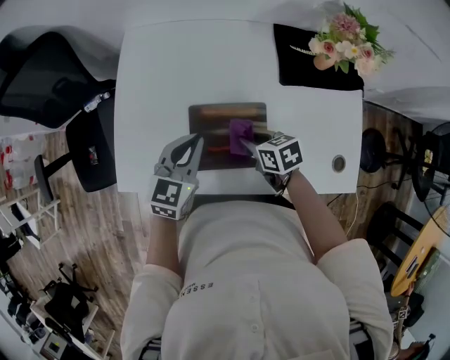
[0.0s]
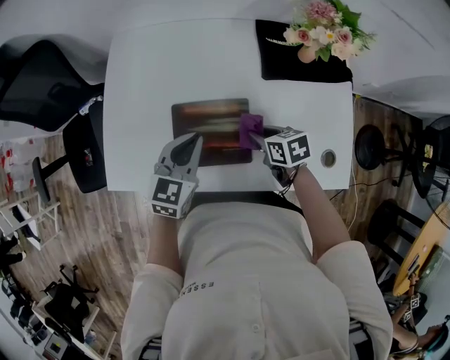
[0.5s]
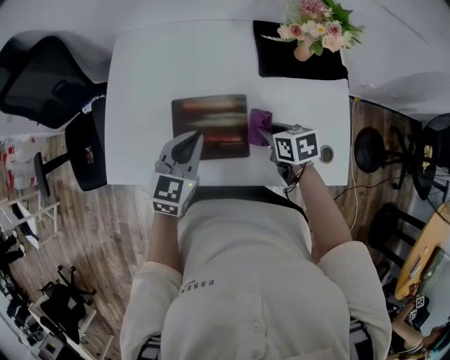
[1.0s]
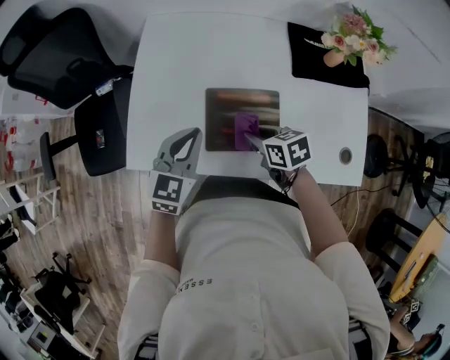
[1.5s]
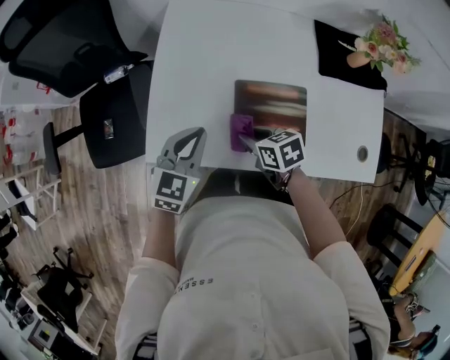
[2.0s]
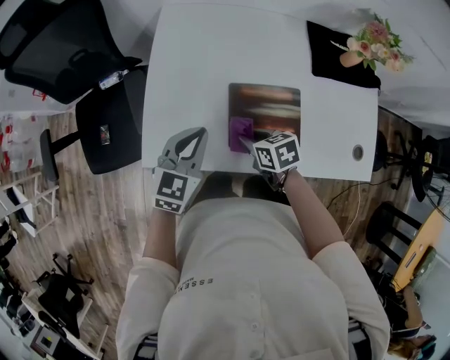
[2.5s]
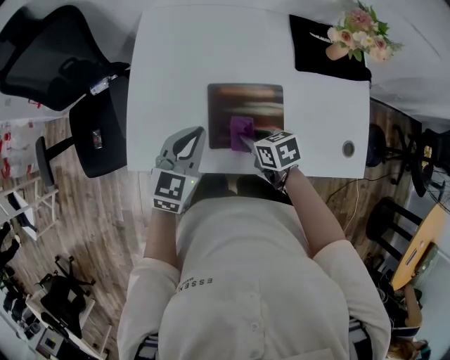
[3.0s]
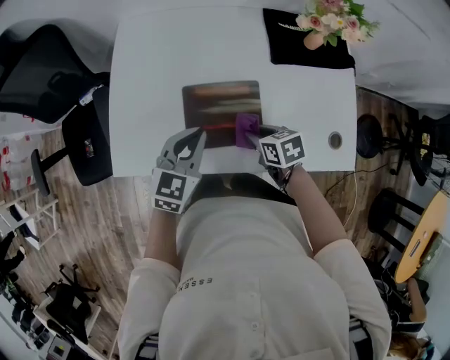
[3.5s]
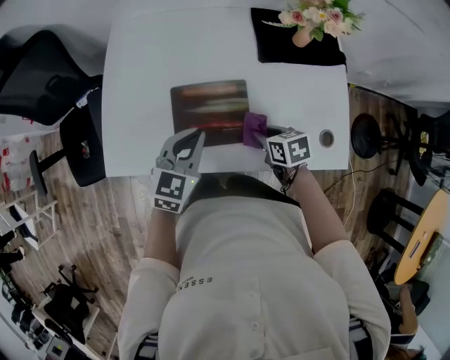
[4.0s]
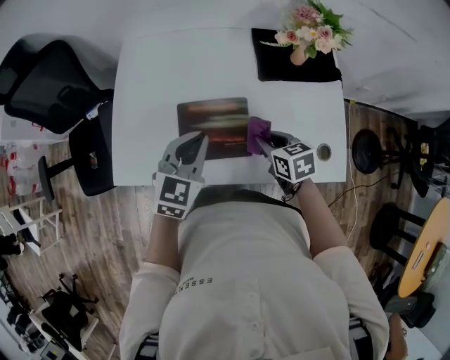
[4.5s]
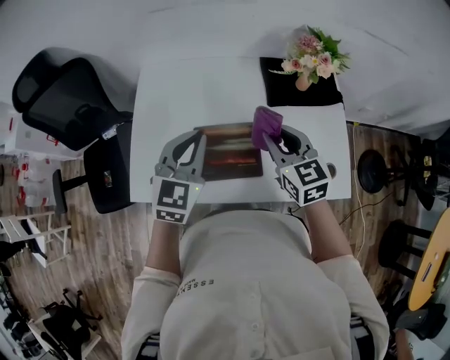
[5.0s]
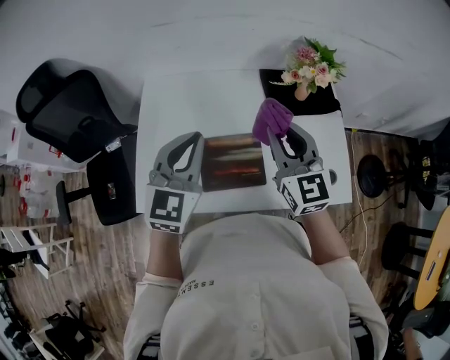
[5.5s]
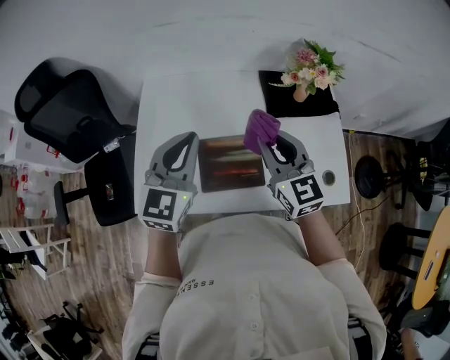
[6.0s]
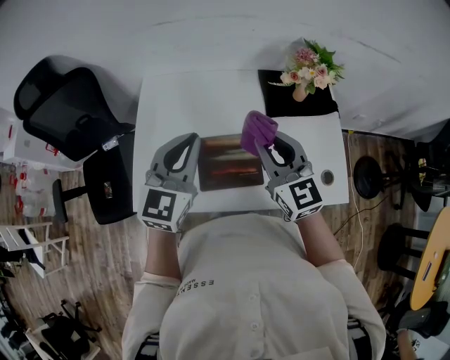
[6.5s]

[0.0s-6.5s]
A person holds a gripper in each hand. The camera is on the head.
0.0s to 2.0s: The two grippers go about 15 cm to the left.
2.0s to 4.5s: Both grippers travel together to the right, roughly 20 cm.
4.5s to 6.5s: The left gripper is displaced upward and to the left by about 15 cm. The right gripper shifts some 25 cm upward, and points its fingers about 40 degrees further upward.

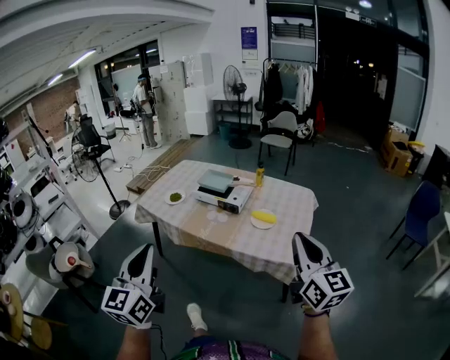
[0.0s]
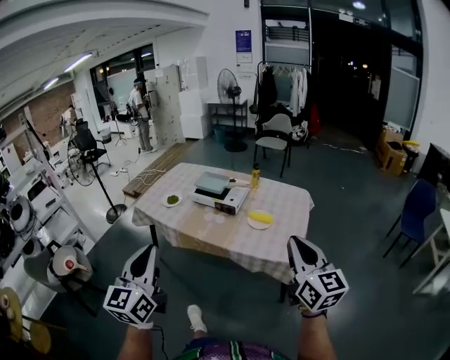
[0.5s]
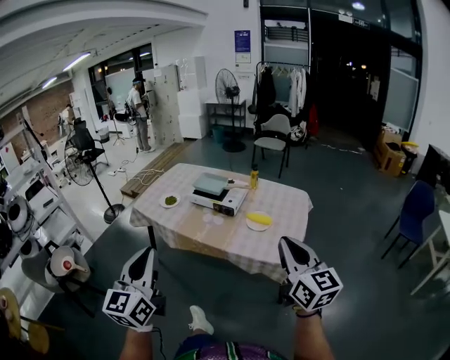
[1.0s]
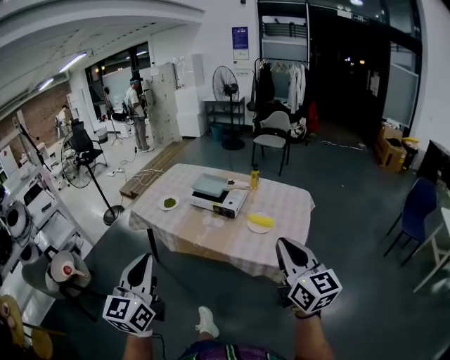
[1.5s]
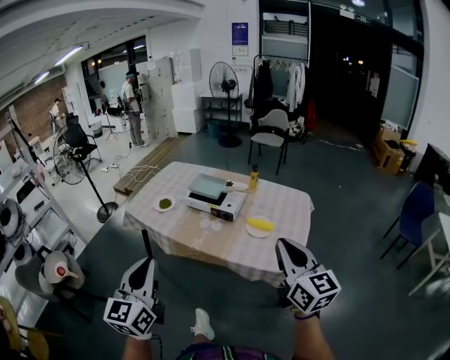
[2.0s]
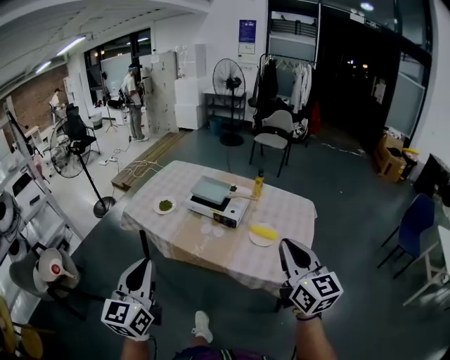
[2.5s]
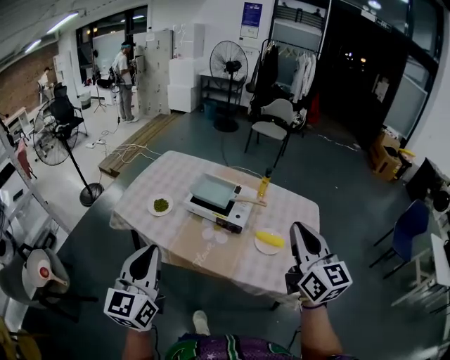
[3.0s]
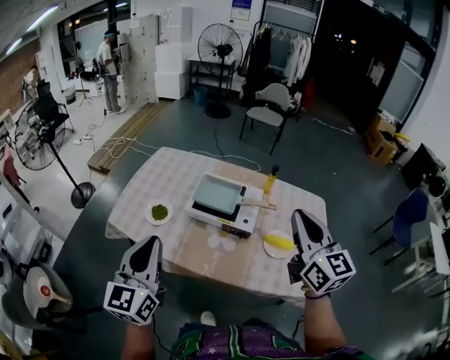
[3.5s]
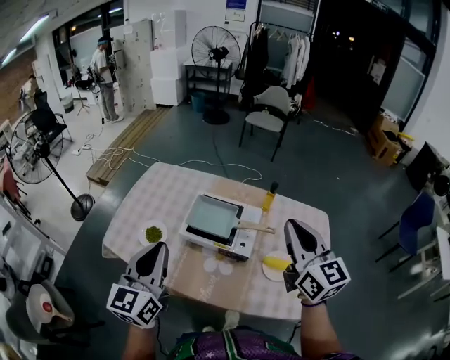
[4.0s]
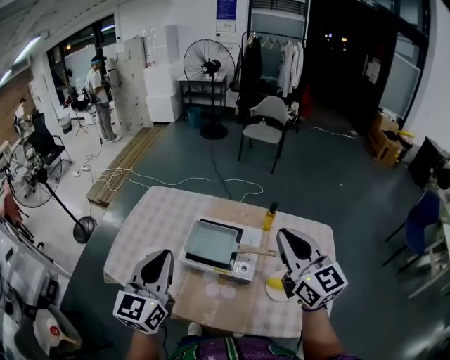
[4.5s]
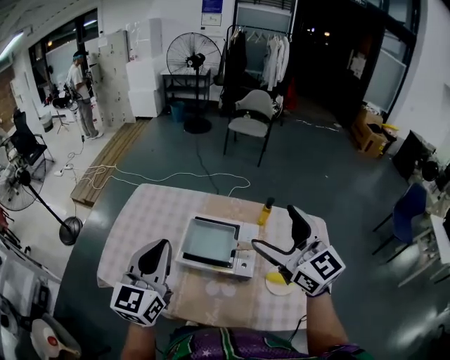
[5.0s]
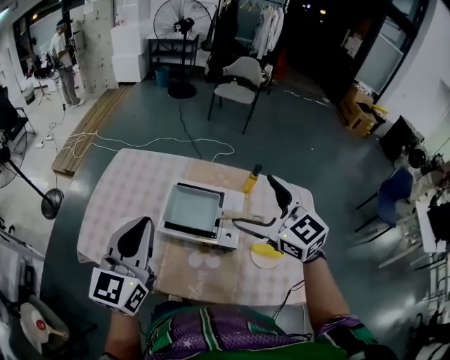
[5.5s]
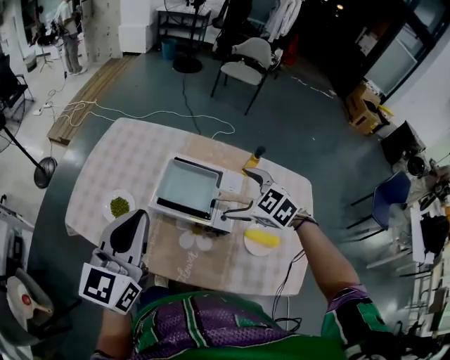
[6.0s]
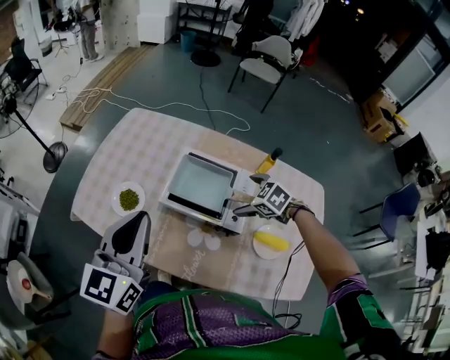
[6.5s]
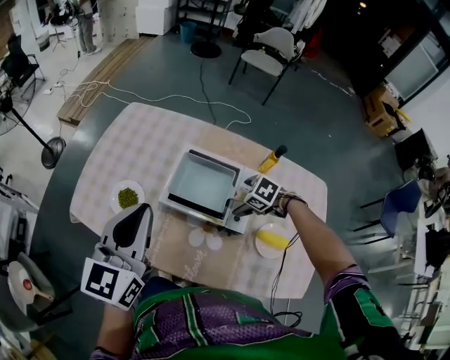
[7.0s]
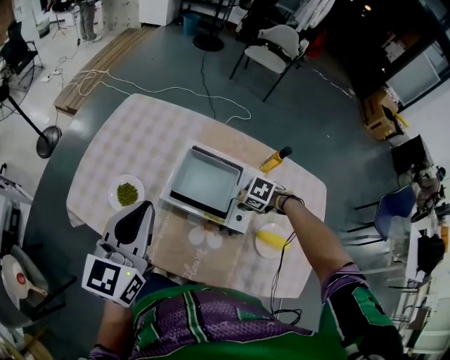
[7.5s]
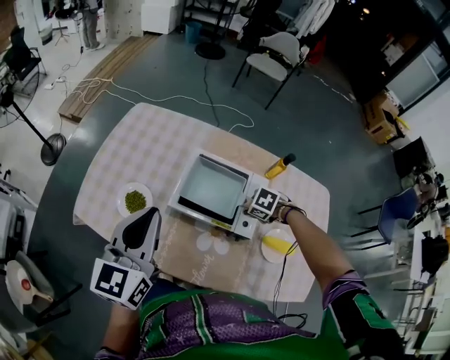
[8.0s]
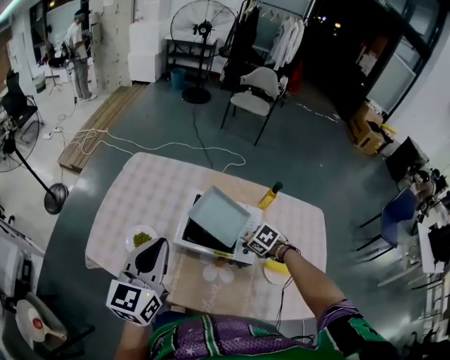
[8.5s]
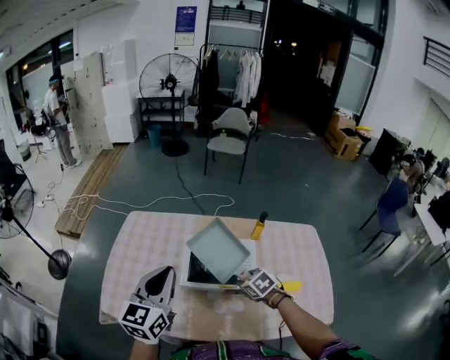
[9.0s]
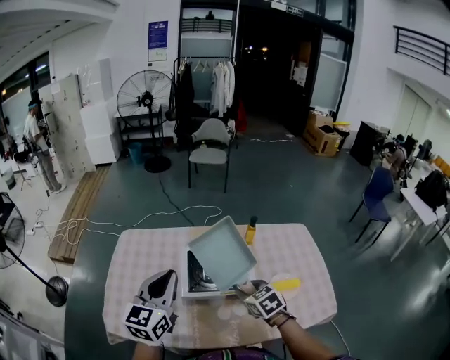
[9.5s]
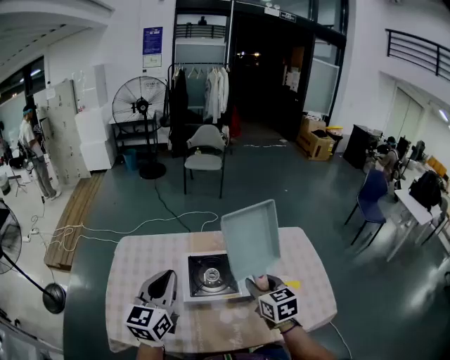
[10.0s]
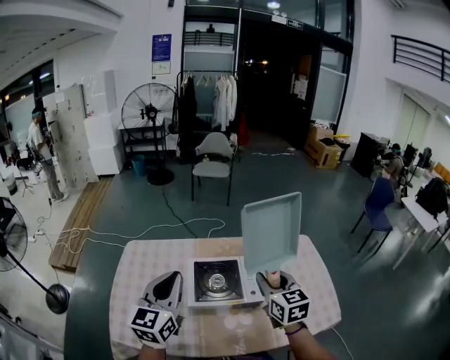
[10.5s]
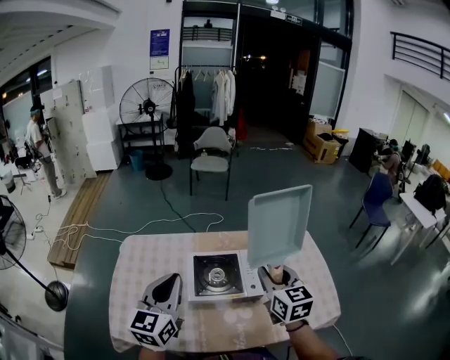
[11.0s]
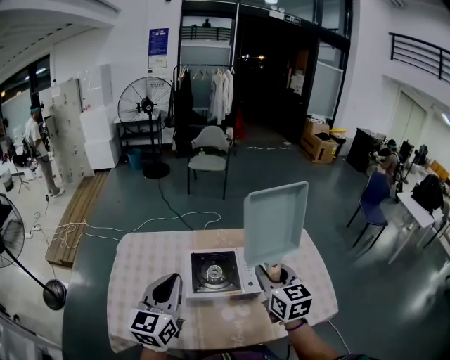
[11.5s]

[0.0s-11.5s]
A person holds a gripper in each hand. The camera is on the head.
0.0s to 2.0s: Both grippers travel together forward, roughly 10 cm.
2.0s to 4.0s: The two grippers travel together, forward, approximately 50 cm.
4.0s to 6.0s: The right gripper travels downward and forward by some 25 cm, angles its fingers downward, by roughly 50 degrees, and opens its fingers. The left gripper moves forward, about 10 cm.
6.0s to 7.5s: The left gripper ends up roughly 10 cm from where it was. The right gripper moves downward, some 20 cm, tilts its fingers about 30 degrees downward, and closes up.
7.5s to 9.5s: The left gripper moves upward, some 5 cm, and swivels some 20 degrees, while the right gripper travels upward by some 20 cm, and angles its fingers upward, by about 30 degrees.
9.5s to 11.5s: The right gripper shifts about 15 cm upward, and swivels some 40 degrees.

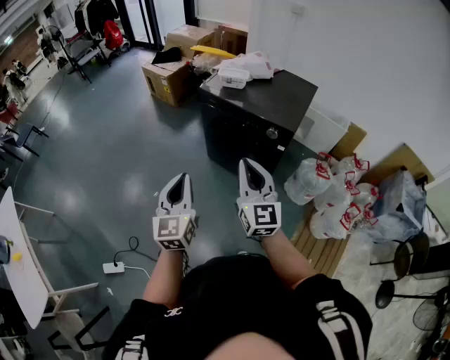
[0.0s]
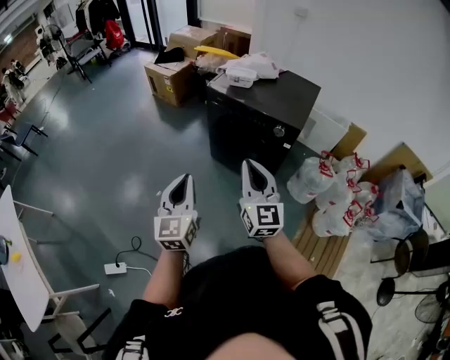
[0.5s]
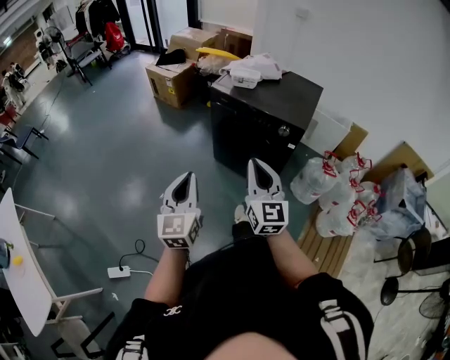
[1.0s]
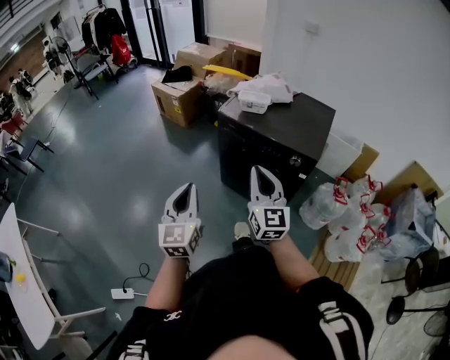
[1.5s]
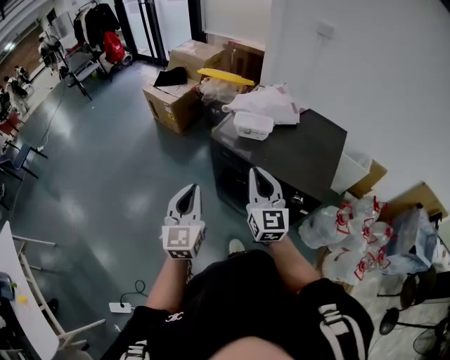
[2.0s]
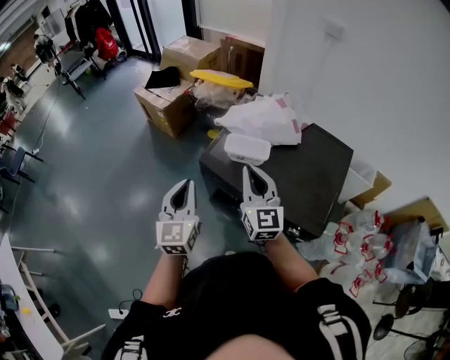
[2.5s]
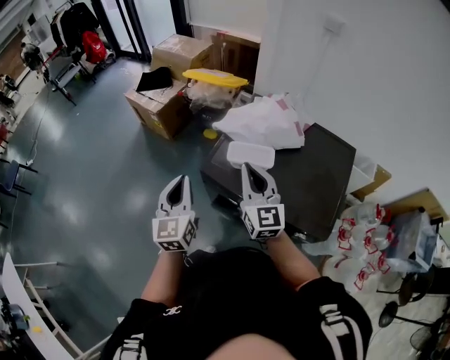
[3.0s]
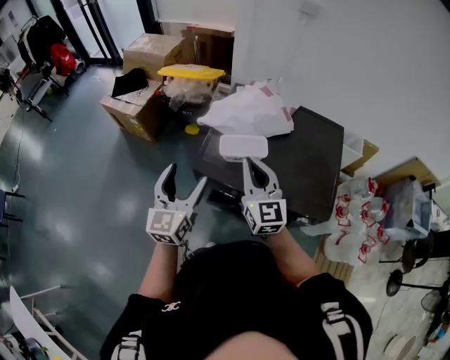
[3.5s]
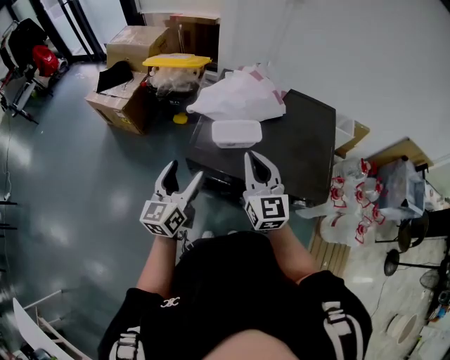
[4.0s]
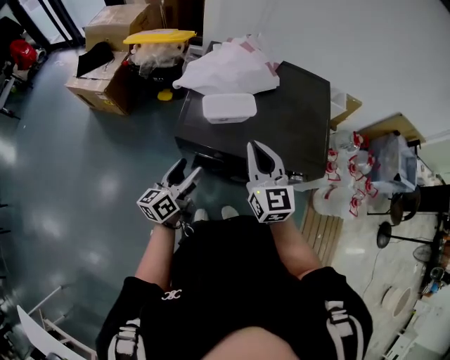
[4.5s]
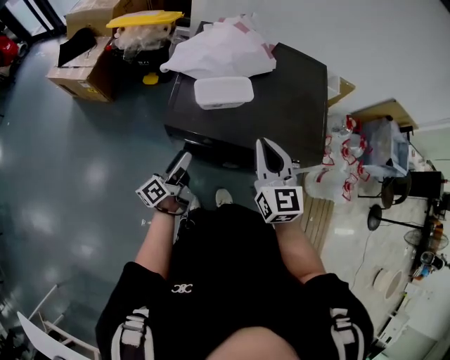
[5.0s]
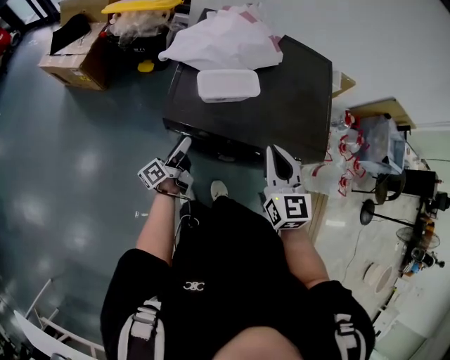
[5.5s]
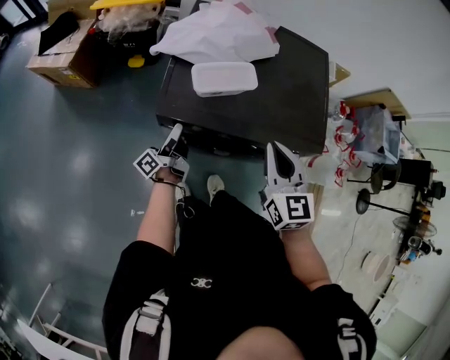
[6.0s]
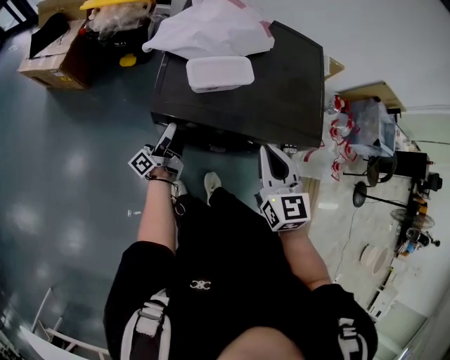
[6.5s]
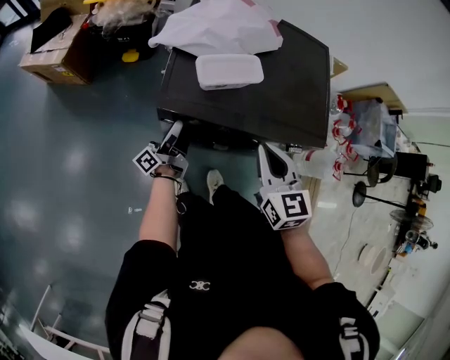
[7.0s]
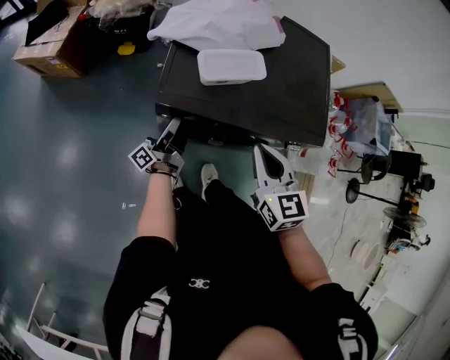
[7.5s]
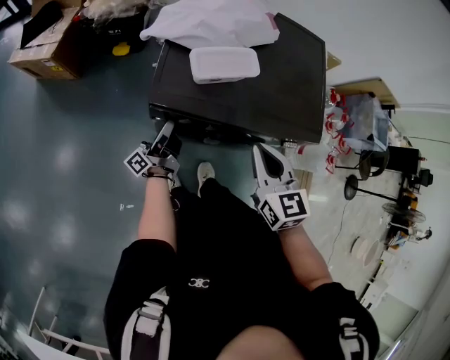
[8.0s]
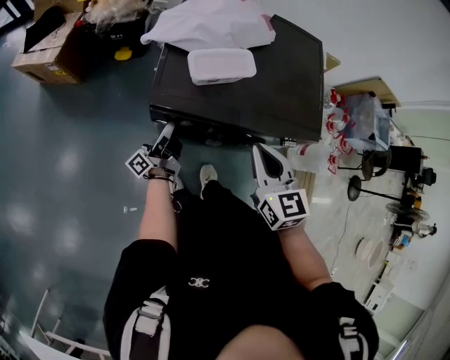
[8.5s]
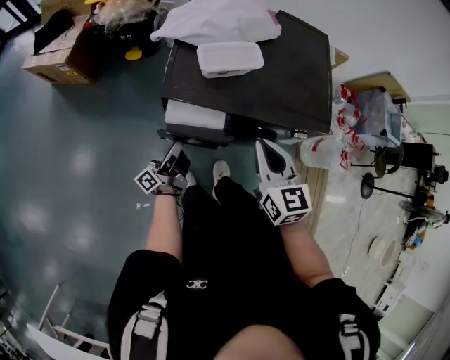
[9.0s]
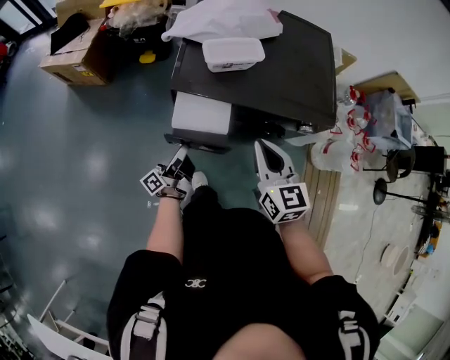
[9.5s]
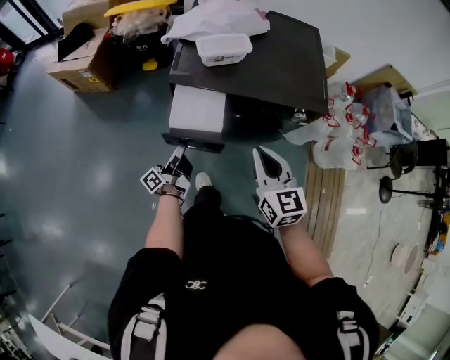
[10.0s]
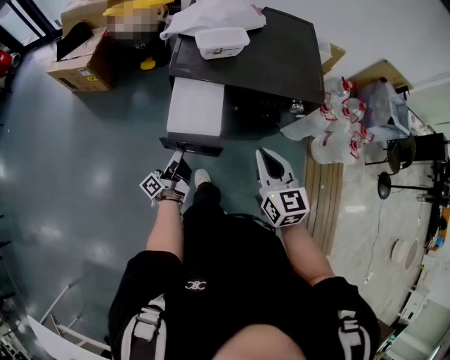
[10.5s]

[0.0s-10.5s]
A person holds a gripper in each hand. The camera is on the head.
0.0s to 2.0s: Both grippers travel together forward, approximately 35 cm.
2.0s to 4.0s: Both grippers travel together forward, some 25 cm. The left gripper changes its angle by some 30 degrees, and opens its fingers.
4.0s to 6.5s: The right gripper heads downward, to the right and backward, covering some 15 cm, and swivels approximately 20 degrees; the left gripper moves downward, approximately 25 cm, and twists about 60 degrees counterclockwise, seen from behind.
6.5s to 8.5s: The left gripper closes.
8.5s to 10.5s: Both grippers move backward, about 20 cm.
